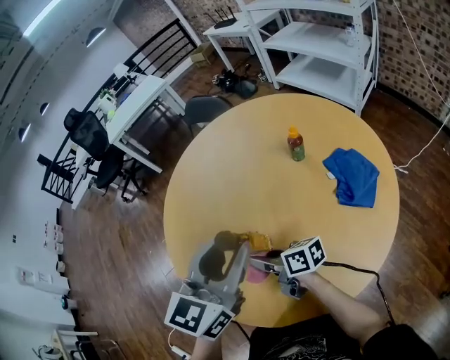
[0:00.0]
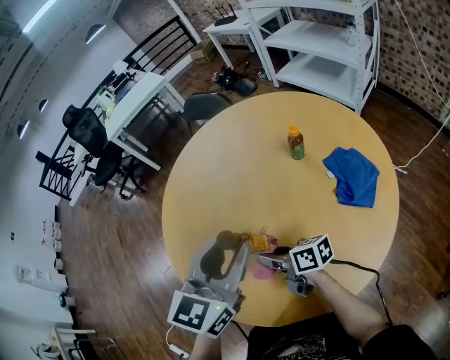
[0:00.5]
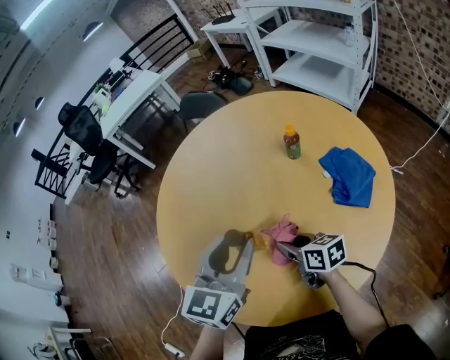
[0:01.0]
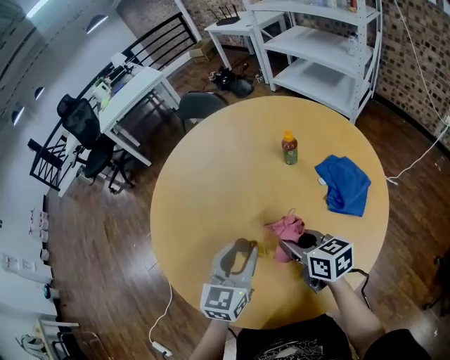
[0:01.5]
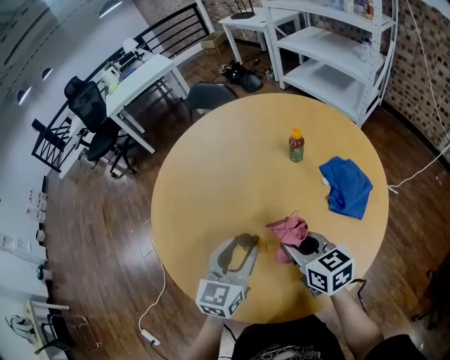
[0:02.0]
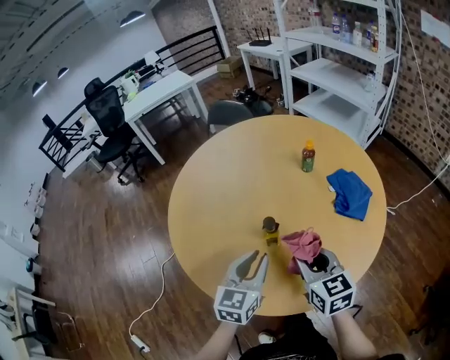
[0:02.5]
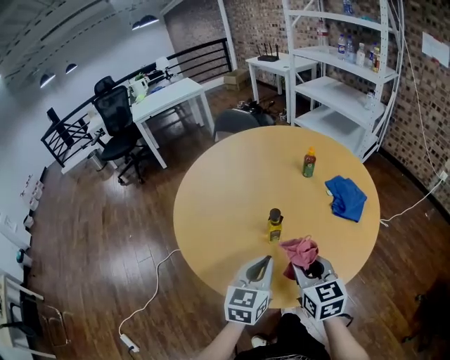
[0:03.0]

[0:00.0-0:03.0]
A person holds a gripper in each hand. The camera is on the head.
0:00.0 to 0:01.5: The right gripper shifts some 15 cm to the right, and turns by roughly 30 degrees; the left gripper goes roughly 15 cm downward.
0:01.5 to 0:03.0: The left gripper moves backward, about 15 cm, and closes up, while the right gripper goes approximately 15 cm backward and upward, and turns by approximately 30 degrees.

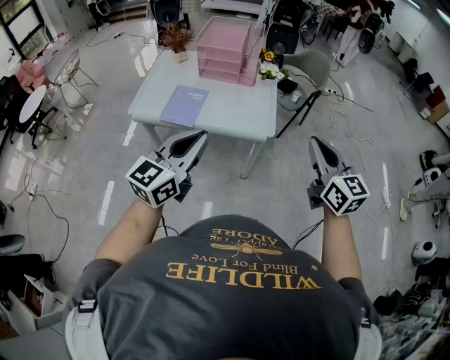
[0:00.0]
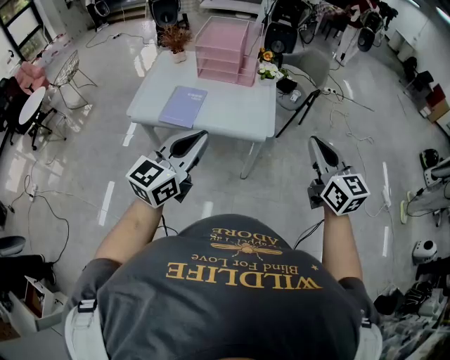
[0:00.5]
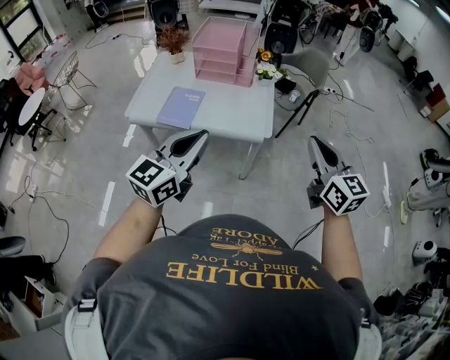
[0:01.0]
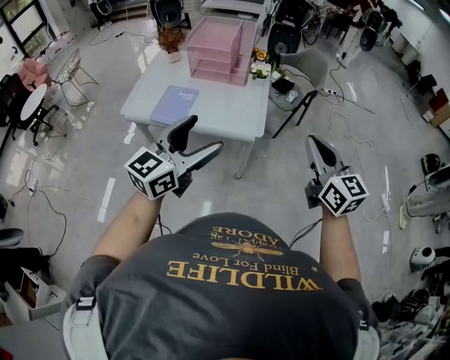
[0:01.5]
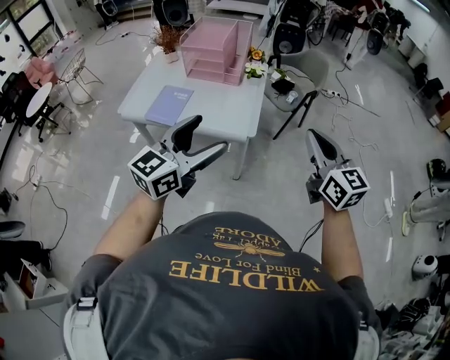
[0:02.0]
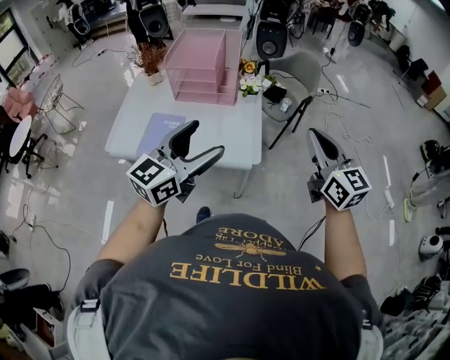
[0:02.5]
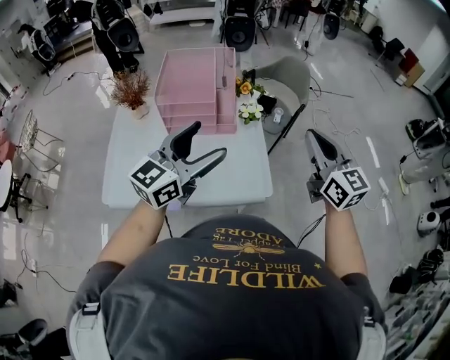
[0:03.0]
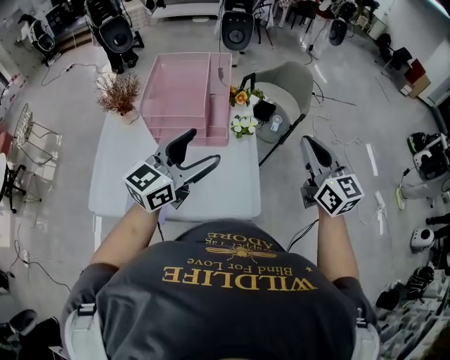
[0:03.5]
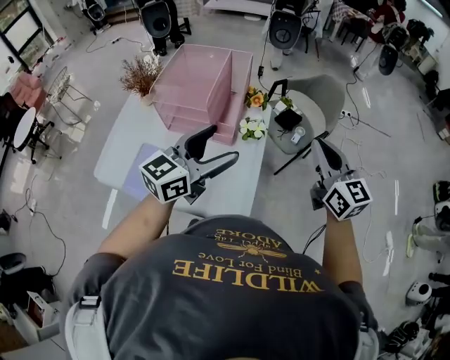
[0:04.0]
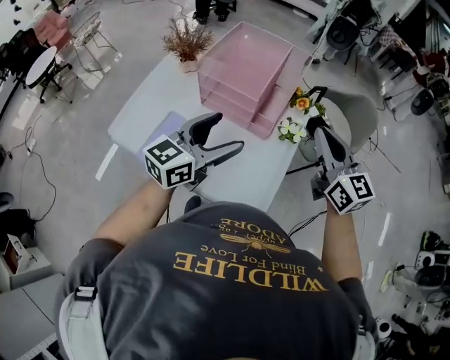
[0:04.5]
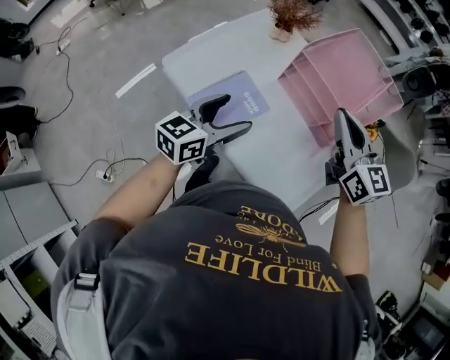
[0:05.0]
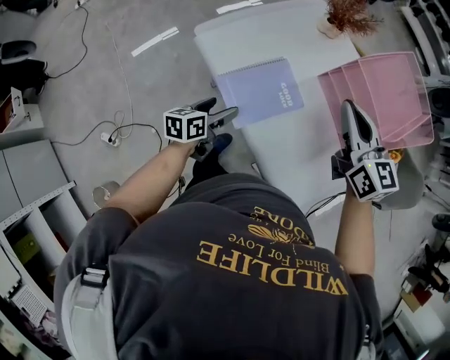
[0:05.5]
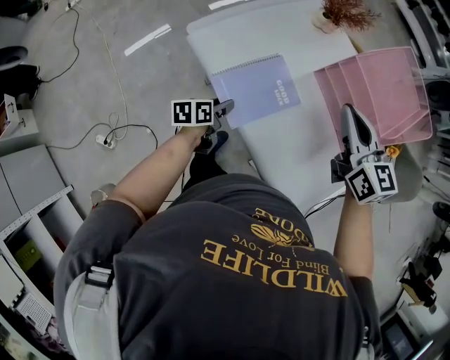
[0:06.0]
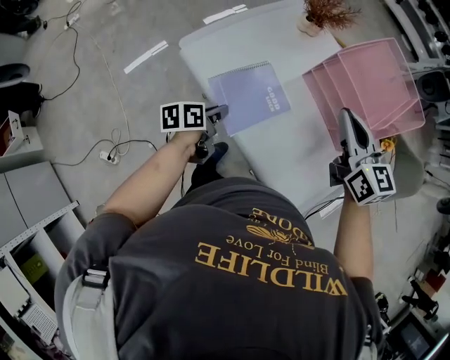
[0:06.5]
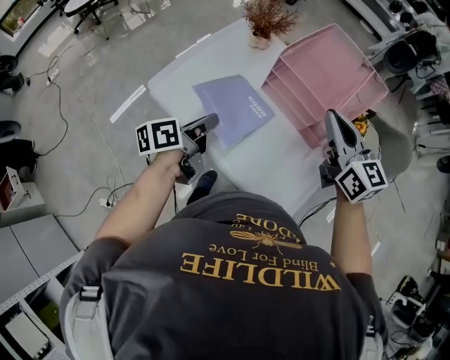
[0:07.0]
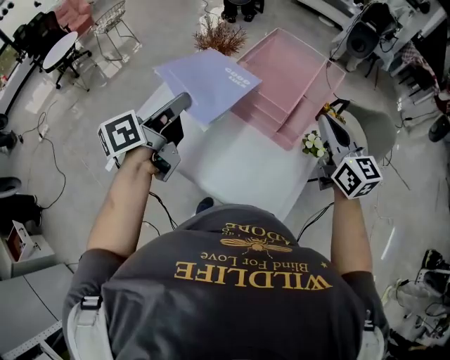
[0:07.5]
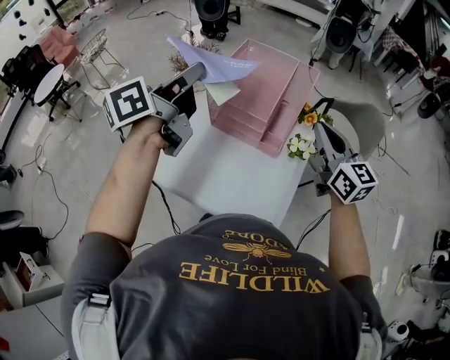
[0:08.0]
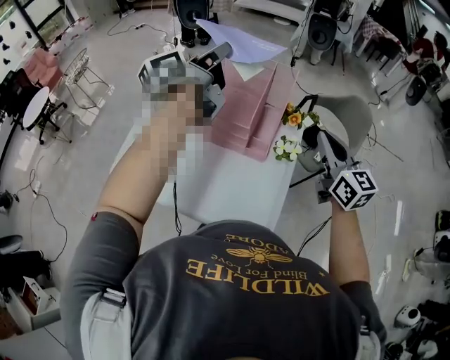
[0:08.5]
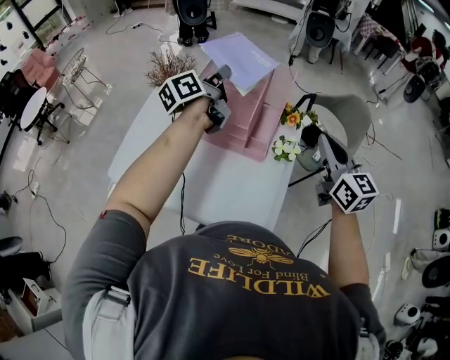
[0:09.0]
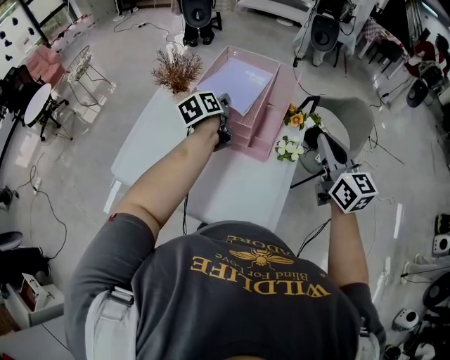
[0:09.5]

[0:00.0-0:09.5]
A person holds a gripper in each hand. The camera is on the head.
0:00.0 to 0:02.0: Both grippers move to the right, roughly 15 cm. The left gripper opens.
0:02.0 to 0:04.0: The two grippers go approximately 40 cm forward.
0:04.0 to 0:05.5: Both grippers are carried some 40 cm. The left gripper changes its angle by roughly 70 degrees; the right gripper changes its angle by roughly 50 degrees.
0:05.5 to 0:07.5: The left gripper heads upward, covering about 35 cm, swivels about 30 degrees, and closes. The right gripper moves to the right, roughly 20 cm, and rotates approximately 30 degrees.
0:07.5 to 0:09.5: The left gripper moves forward, to the right and downward, roughly 30 cm, and turns by some 20 degrees; the right gripper shifts some 10 cm to the right.

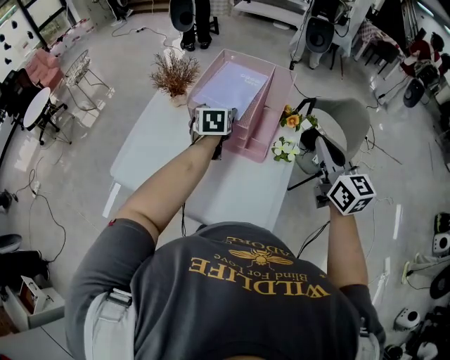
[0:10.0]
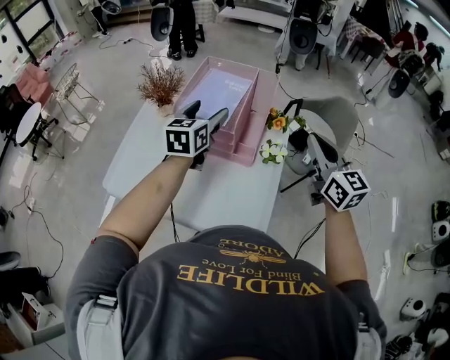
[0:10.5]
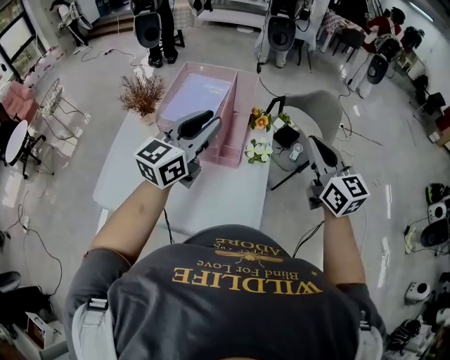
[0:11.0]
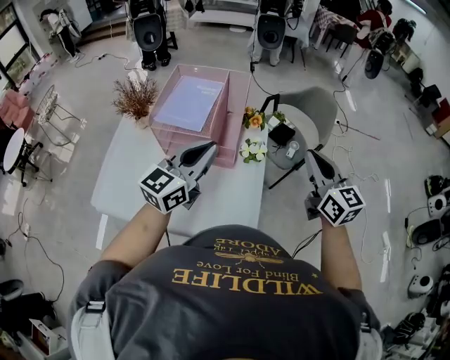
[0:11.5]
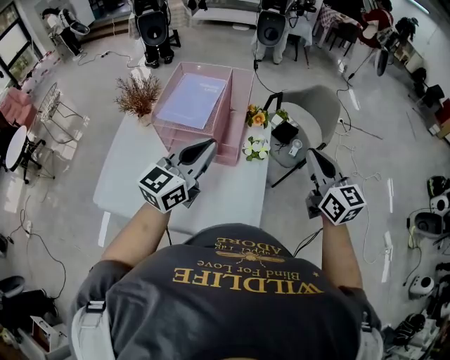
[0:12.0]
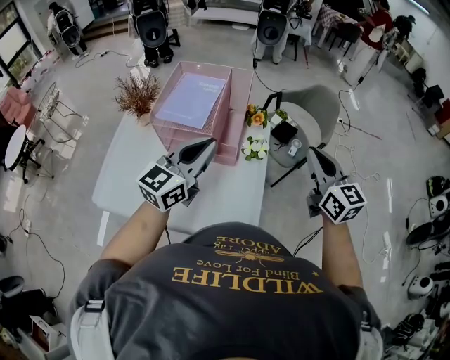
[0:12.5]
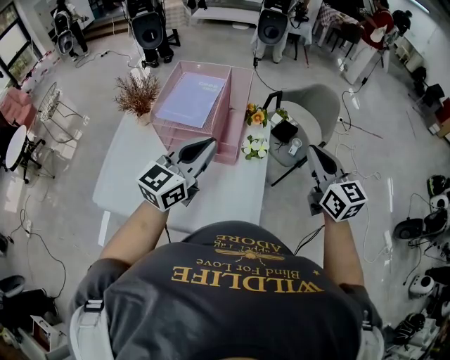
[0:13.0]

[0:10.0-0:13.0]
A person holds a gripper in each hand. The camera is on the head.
0:10.0 to 0:11.5: The left gripper moves about 25 cm, points its fingers some 40 degrees further upward, and closes up. The right gripper ends up approximately 10 cm from where it was.
0:11.5 to 0:13.0: Neither gripper changes place.

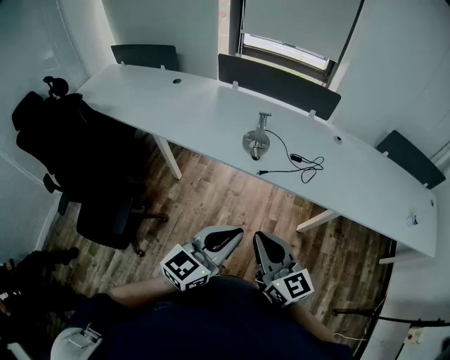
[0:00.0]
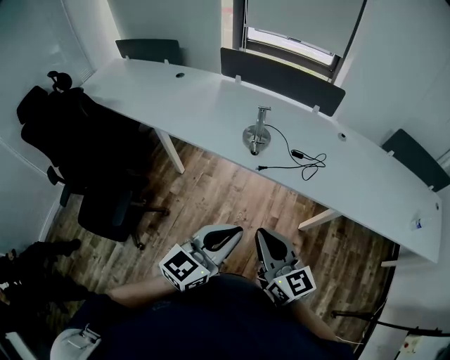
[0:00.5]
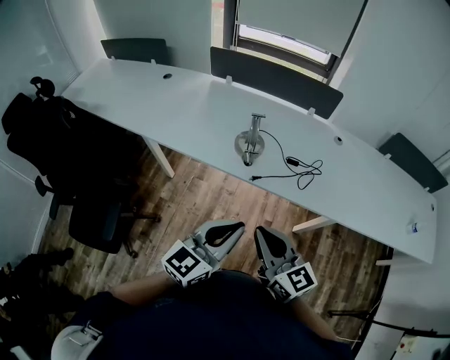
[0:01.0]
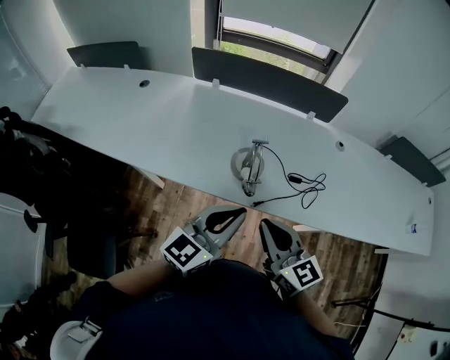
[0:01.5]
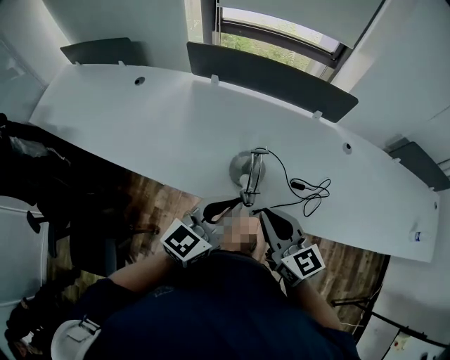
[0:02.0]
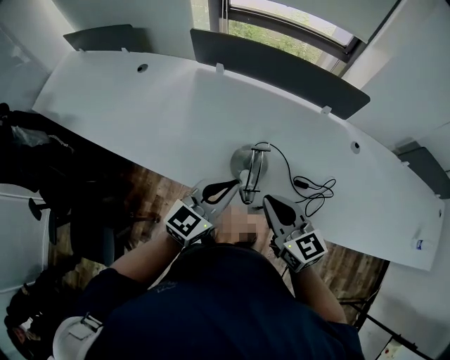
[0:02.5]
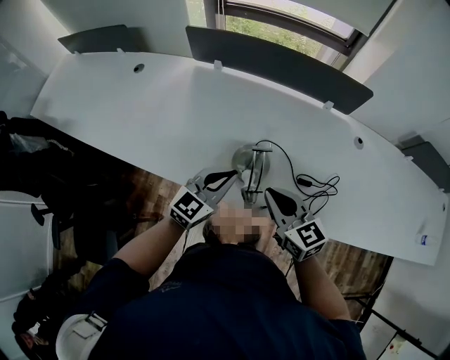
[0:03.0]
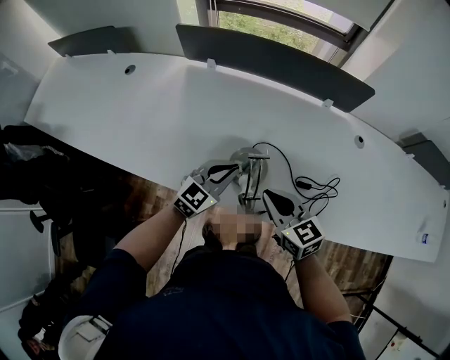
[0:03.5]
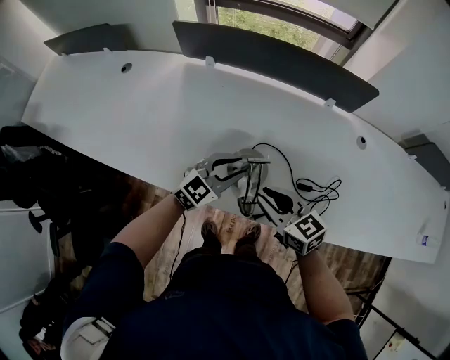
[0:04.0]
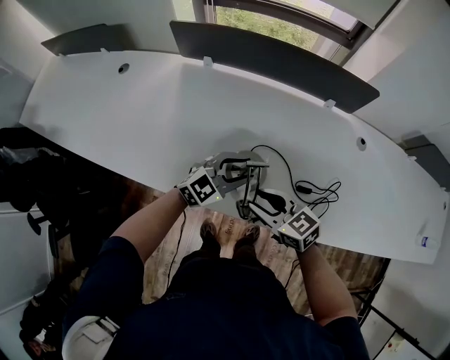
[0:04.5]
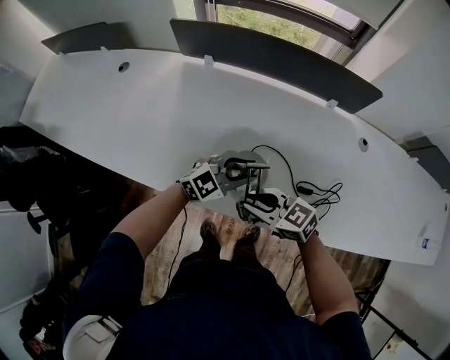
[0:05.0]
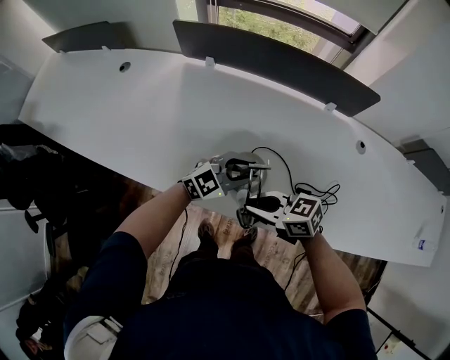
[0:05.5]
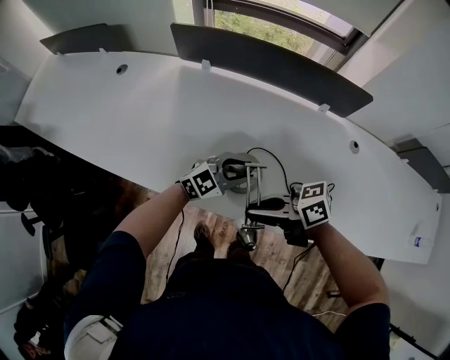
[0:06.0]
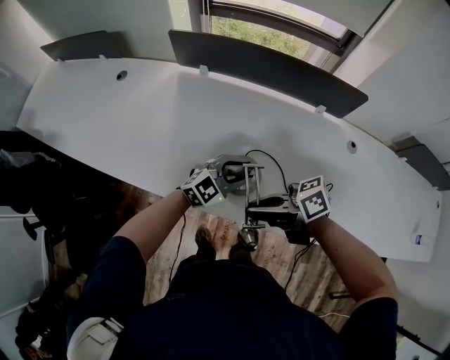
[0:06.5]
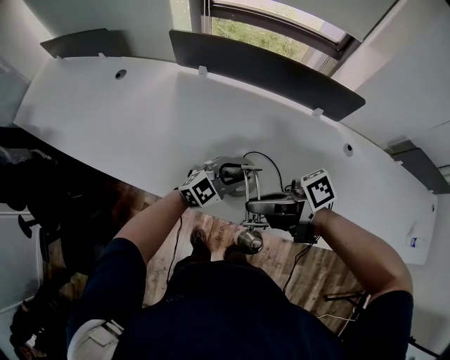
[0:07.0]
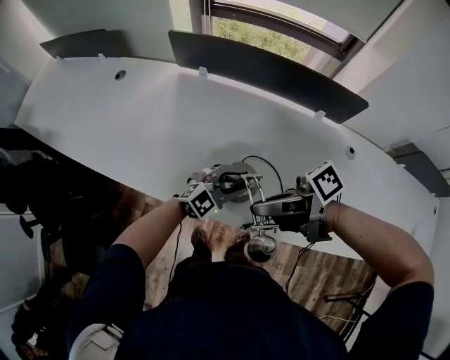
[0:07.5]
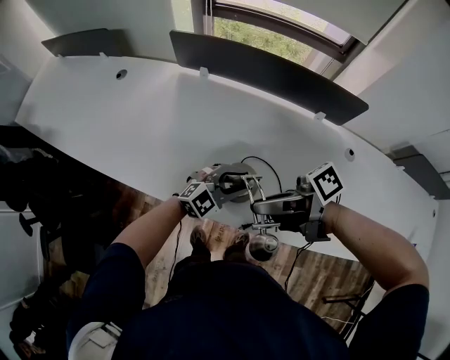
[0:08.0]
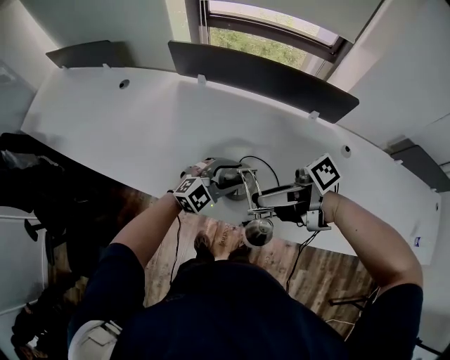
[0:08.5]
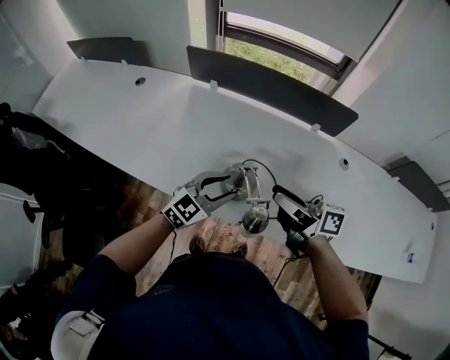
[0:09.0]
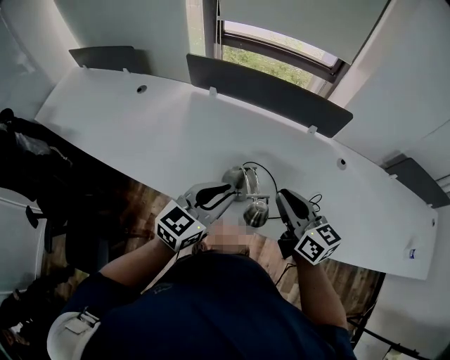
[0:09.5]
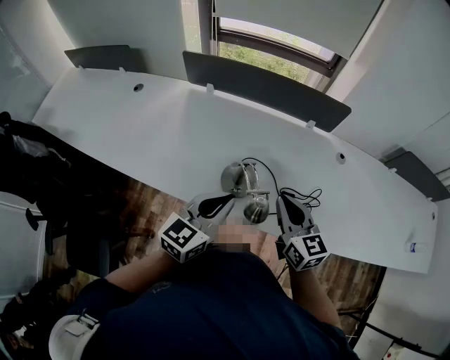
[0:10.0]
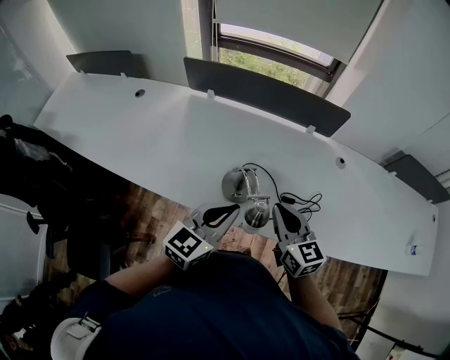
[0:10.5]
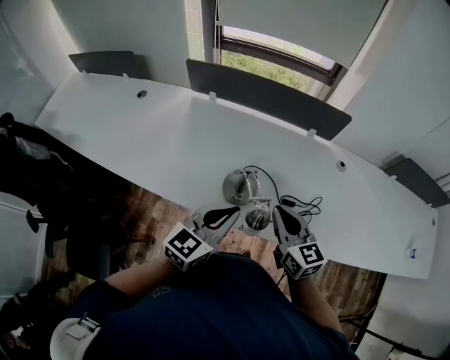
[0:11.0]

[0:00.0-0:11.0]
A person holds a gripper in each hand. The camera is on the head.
0:00.0 to 0:02.0: The two grippers go some 35 cm forward.
0:02.0 to 0:03.5: The two grippers go about 20 cm downward and forward. The left gripper turns by about 20 degrees.
0:03.5 to 0:05.5: The left gripper moves roughly 5 cm, turns by roughly 20 degrees, and opens, while the right gripper shifts by about 5 cm, and rotates roughly 40 degrees.
0:05.5 to 0:07.5: The right gripper moves upward, roughly 15 cm, and rotates around the line of its fingers by approximately 40 degrees, clockwise from behind.
0:07.5 to 0:09.0: The left gripper heads upward, covering approximately 10 cm; the right gripper shifts by some 10 cm, swivels roughly 50 degrees, and opens up.
0:09.0 to 0:11.0: The right gripper ends up some 5 cm from where it was, changes its angle by approximately 60 degrees, and closes up; the left gripper goes some 10 cm upward and backward, turns by approximately 20 degrees, and closes its fingers.
